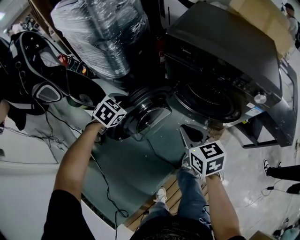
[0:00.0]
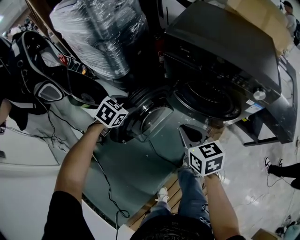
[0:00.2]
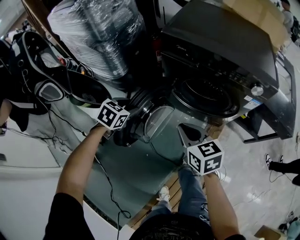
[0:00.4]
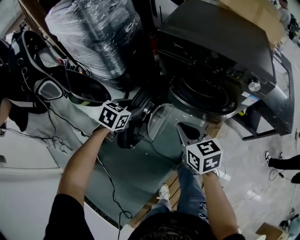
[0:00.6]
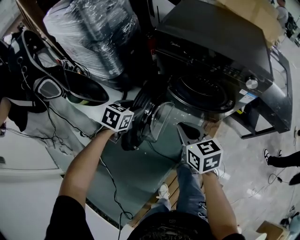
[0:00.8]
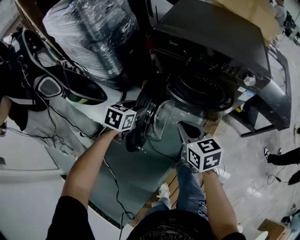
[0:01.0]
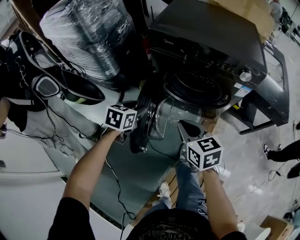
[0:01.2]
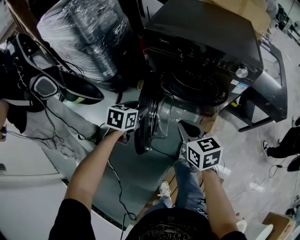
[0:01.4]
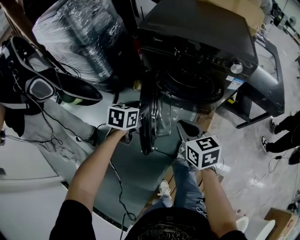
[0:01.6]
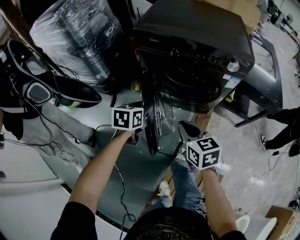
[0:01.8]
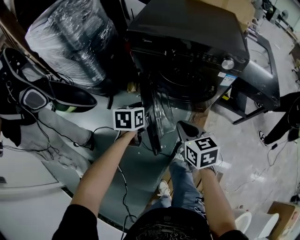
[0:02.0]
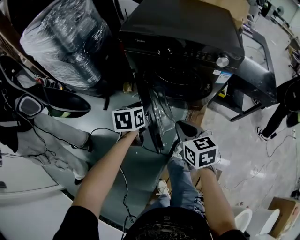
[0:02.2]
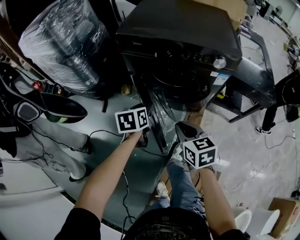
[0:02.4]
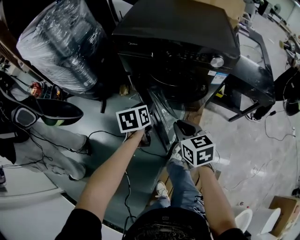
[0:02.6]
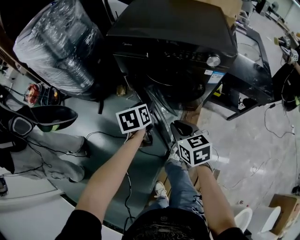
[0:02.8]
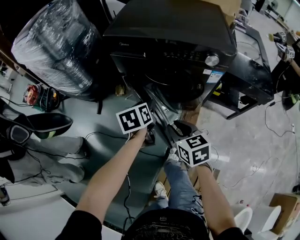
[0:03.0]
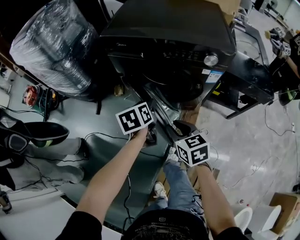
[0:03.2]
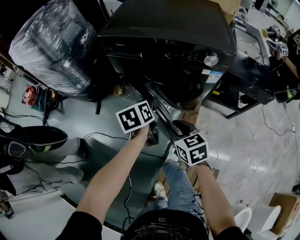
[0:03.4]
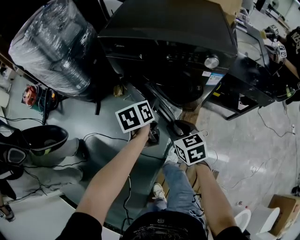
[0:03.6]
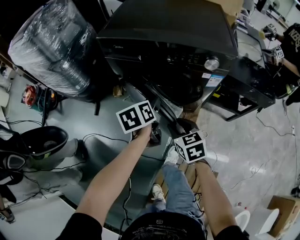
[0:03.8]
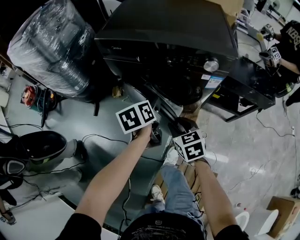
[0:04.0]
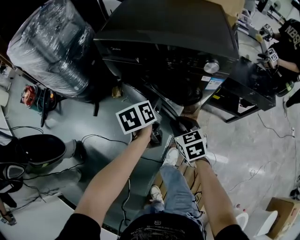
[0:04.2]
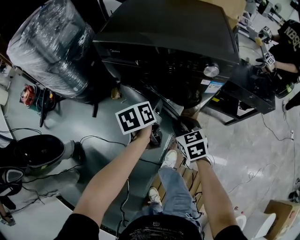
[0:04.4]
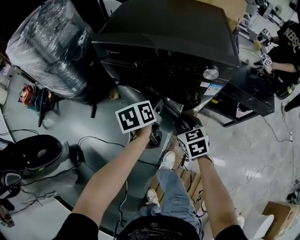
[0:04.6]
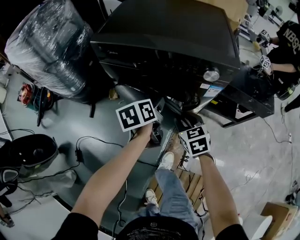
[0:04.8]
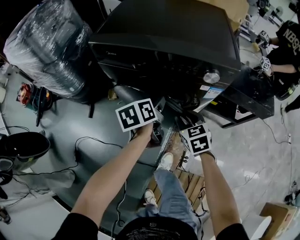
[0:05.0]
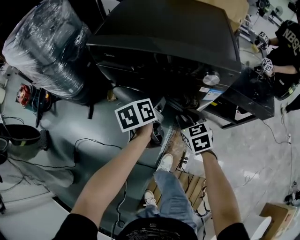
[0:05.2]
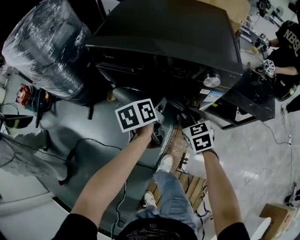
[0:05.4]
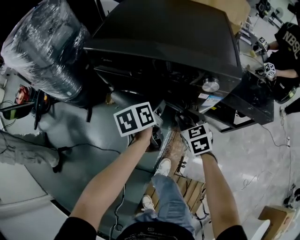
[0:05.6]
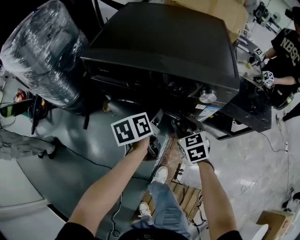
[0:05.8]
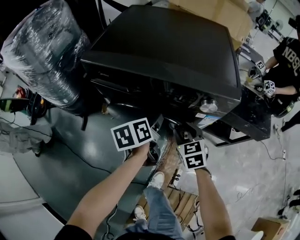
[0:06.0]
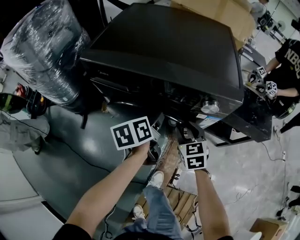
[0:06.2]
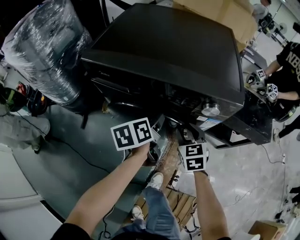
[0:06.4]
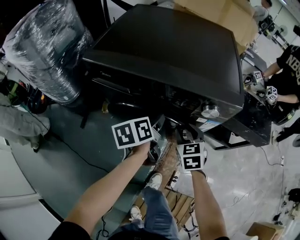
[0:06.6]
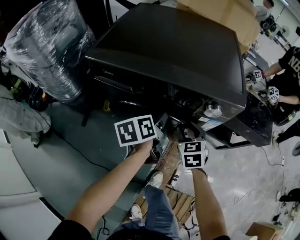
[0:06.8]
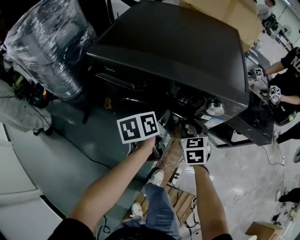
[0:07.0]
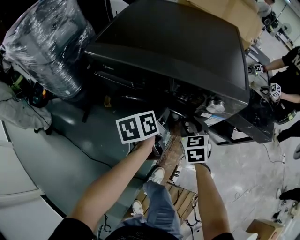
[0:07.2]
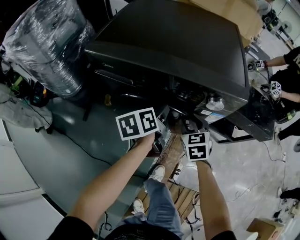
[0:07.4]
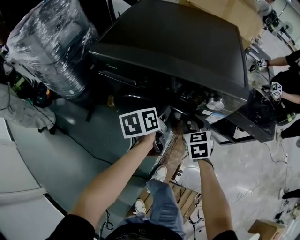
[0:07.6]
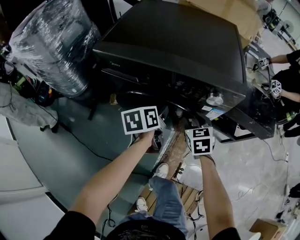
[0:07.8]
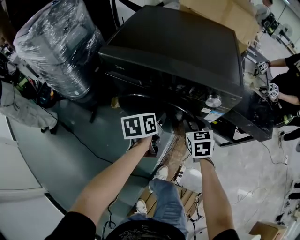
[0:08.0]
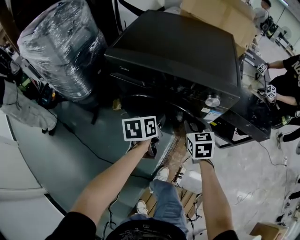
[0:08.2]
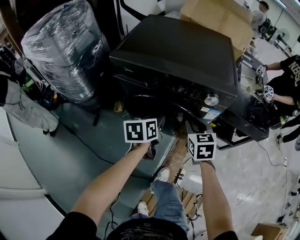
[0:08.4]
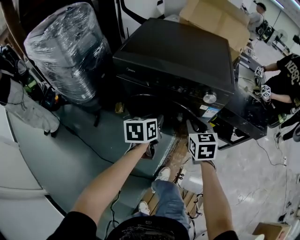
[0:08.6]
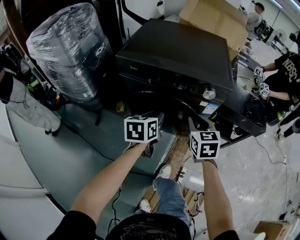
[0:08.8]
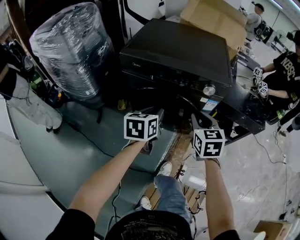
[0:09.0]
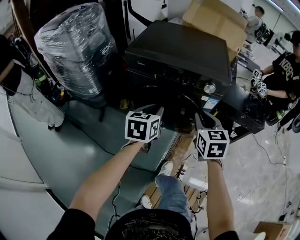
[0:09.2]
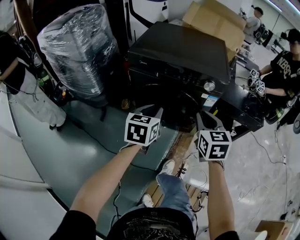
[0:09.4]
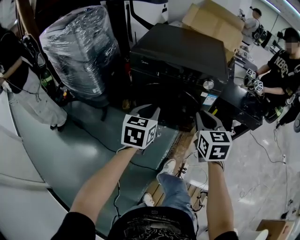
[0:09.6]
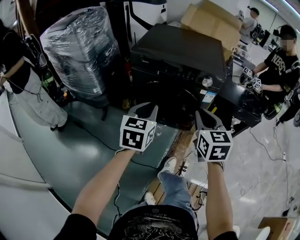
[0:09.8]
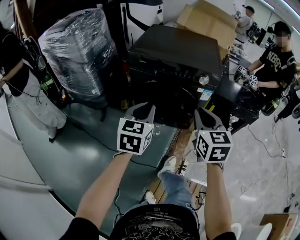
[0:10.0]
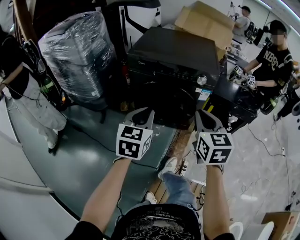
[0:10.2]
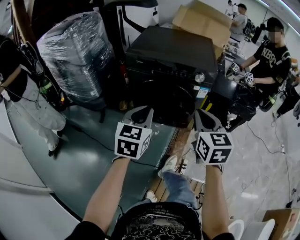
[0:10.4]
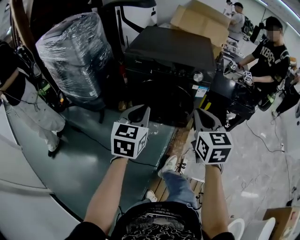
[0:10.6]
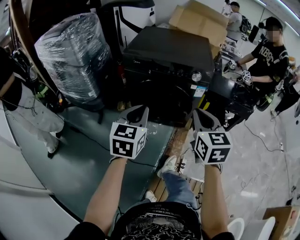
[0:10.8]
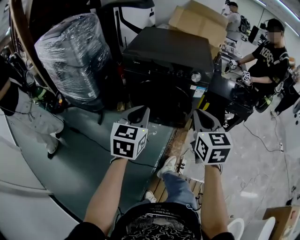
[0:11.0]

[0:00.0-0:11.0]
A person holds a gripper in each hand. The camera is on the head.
0:00.0 to 0:01.6: The left gripper heads to the right and backward, covering approximately 15 cm, and rotates about 30 degrees. Meanwhile the right gripper shifts about 10 cm backward and to the right.
0:01.6 to 0:03.2: The left gripper is displaced to the right by about 15 cm, and swivels about 30 degrees. The right gripper moves to the right and downward, roughly 10 cm.
0:03.2 to 0:04.8: The left gripper goes about 10 cm to the right and forward. The right gripper heads forward and to the right, covering some 15 cm.
0:04.8 to 0:06.2: The right gripper travels forward by roughly 10 cm; the left gripper is displaced forward by approximately 5 cm.
0:06.2 to 0:07.8: The grippers stay close to where they were, moving slightly.
0:07.8 to 0:09.4: The left gripper moves backward and upward, about 25 cm, and turns by about 40 degrees. The right gripper shifts some 30 cm upward and backward, and closes up.
0:09.4 to 0:11.0: Both grippers move backward and upward, approximately 15 cm.

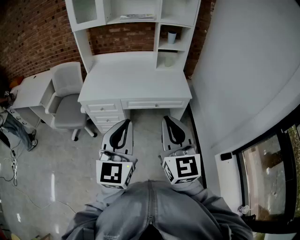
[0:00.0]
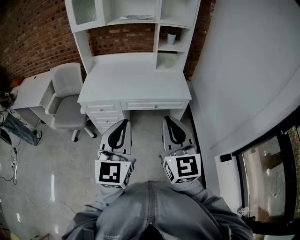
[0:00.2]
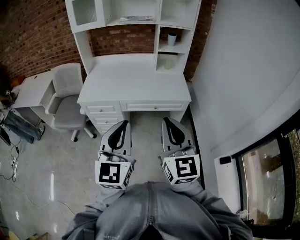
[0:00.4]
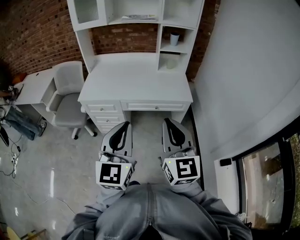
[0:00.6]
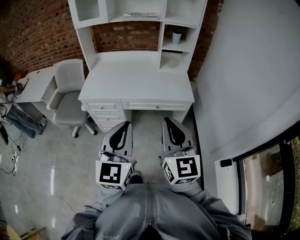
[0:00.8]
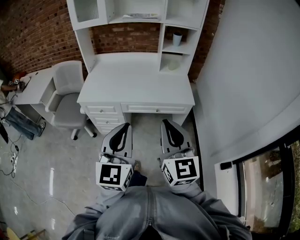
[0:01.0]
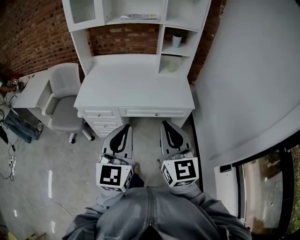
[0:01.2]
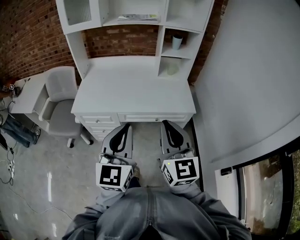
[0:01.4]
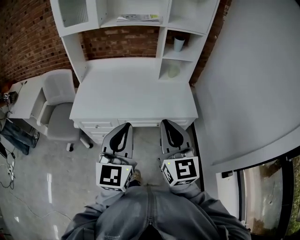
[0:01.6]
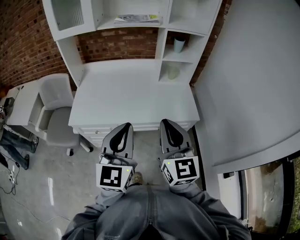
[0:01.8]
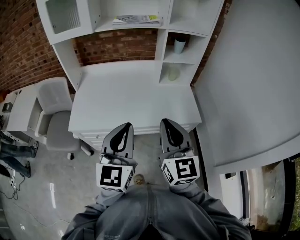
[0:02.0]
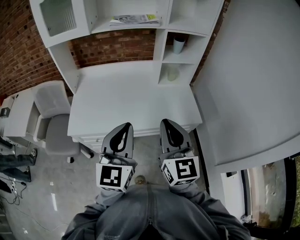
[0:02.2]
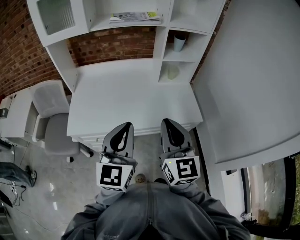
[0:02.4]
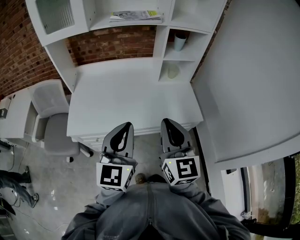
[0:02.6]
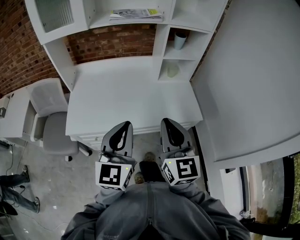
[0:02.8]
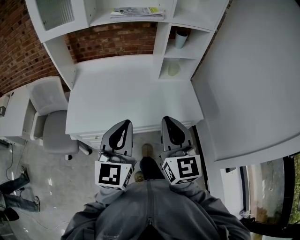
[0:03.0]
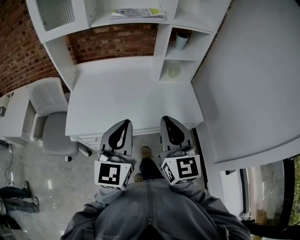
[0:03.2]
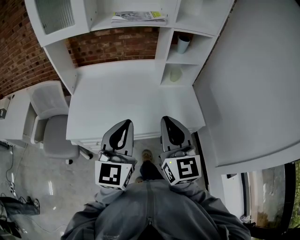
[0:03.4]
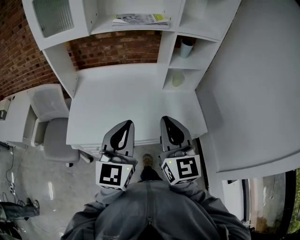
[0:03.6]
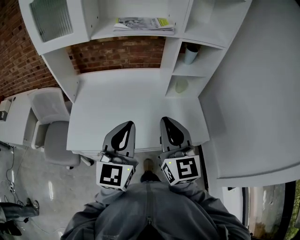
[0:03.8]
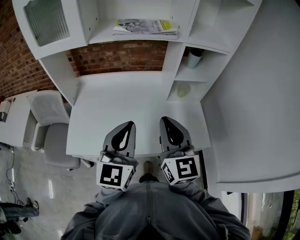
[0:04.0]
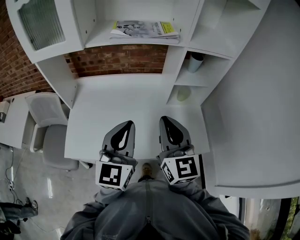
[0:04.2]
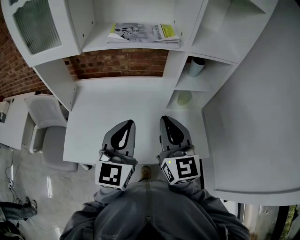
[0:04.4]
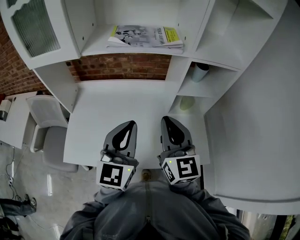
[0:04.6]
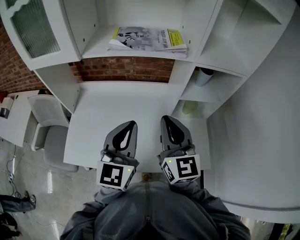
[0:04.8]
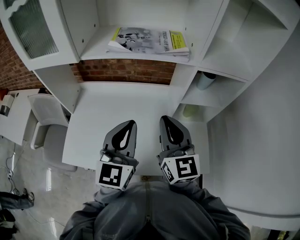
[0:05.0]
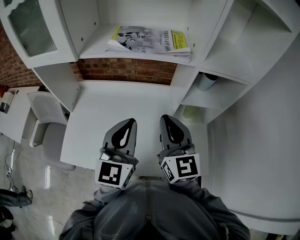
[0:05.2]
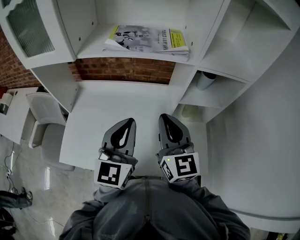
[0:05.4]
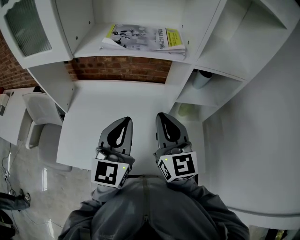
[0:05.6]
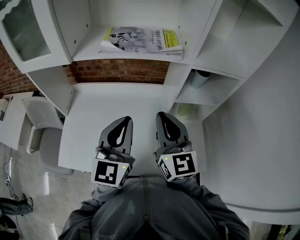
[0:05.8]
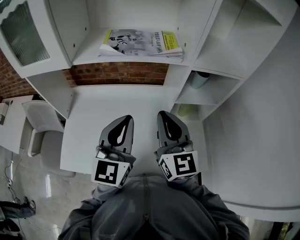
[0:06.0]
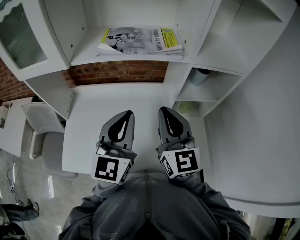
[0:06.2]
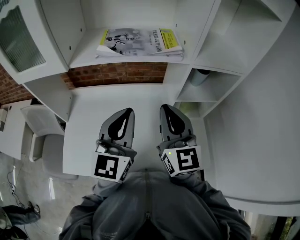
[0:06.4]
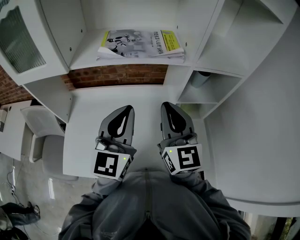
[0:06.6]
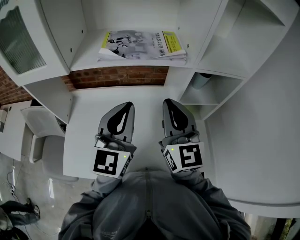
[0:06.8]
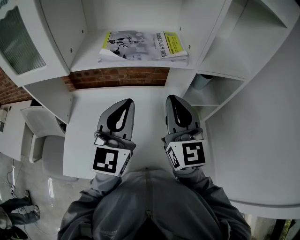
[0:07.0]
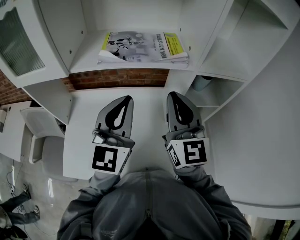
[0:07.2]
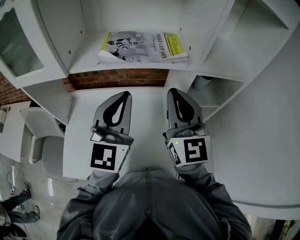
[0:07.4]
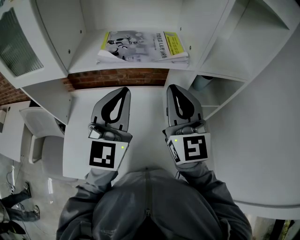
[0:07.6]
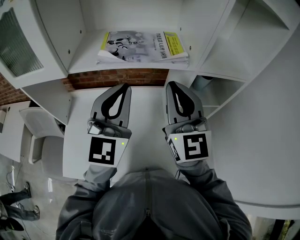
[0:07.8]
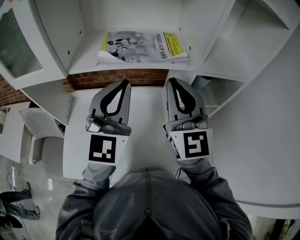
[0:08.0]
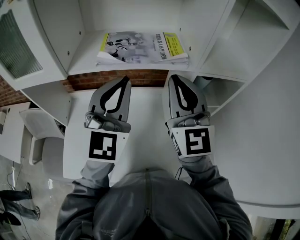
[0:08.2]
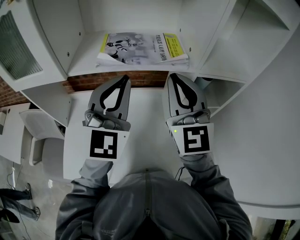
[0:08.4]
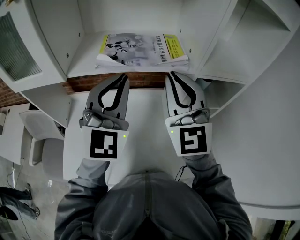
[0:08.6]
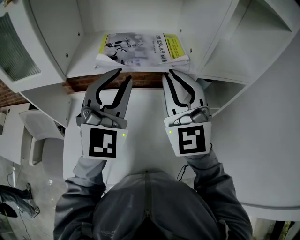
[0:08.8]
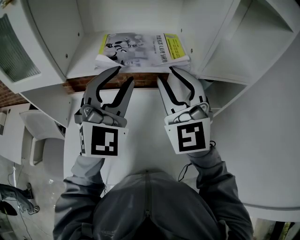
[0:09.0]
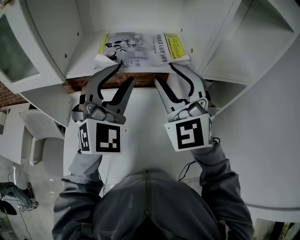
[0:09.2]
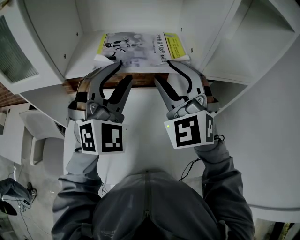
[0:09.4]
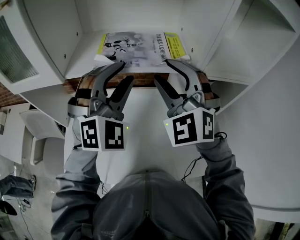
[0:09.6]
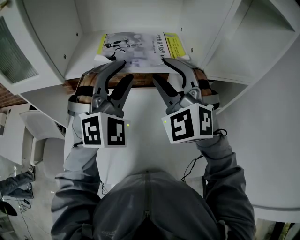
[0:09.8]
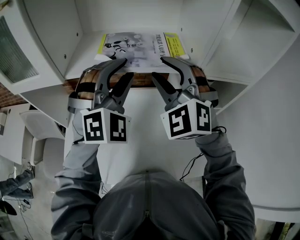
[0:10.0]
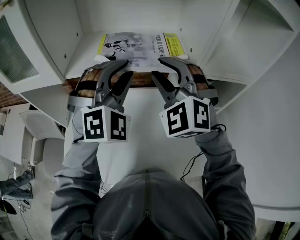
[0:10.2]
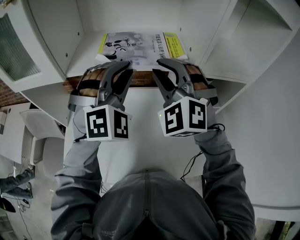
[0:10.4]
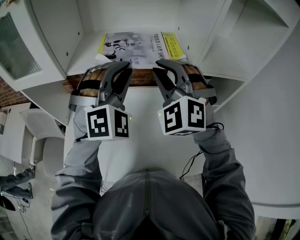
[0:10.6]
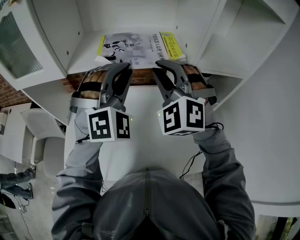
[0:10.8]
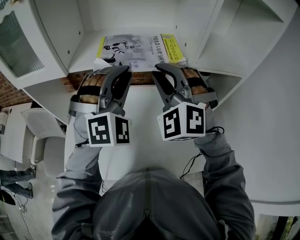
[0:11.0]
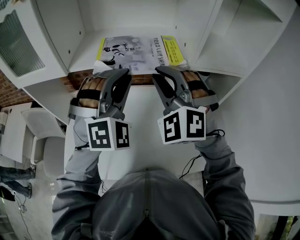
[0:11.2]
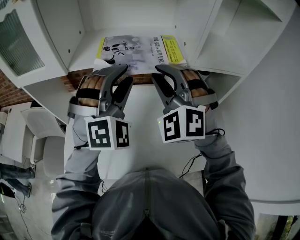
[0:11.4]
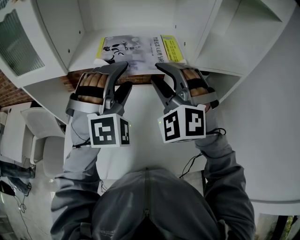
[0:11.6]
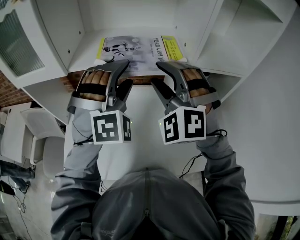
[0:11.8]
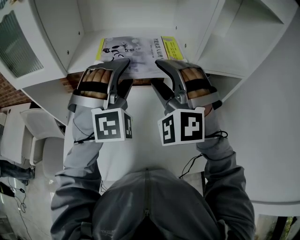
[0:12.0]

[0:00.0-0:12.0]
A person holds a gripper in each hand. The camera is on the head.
0:00.0 to 0:01.6: The grippers both shift forward by approximately 20 cm.
0:01.6 to 0:03.0: Both grippers travel together forward and to the left, roughly 15 cm.
0:03.0 to 0:04.4: Both grippers travel together forward, about 25 cm.
0:04.4 to 0:06.0: Both grippers travel together forward, roughly 10 cm.
0:06.0 to 0:07.6: The left gripper moves forward and upward, about 10 cm. The right gripper moves upward and forward, about 10 cm.
0:07.6 to 0:09.0: The left gripper shifts by some 5 cm, rotates some 30 degrees, and opens up, while the right gripper turns by roughly 30 degrees, and opens up.
0:09.0 to 0:10.4: The left gripper changes its angle by approximately 30 degrees, while the right gripper turns by some 30 degrees.
0:10.4 to 0:12.0: The left gripper opens up, while the right gripper opens.

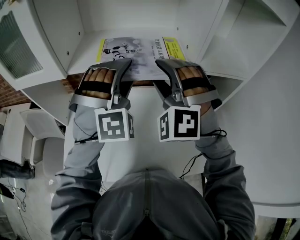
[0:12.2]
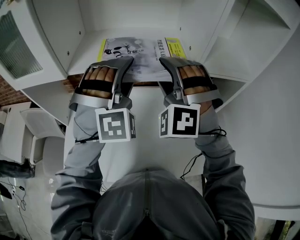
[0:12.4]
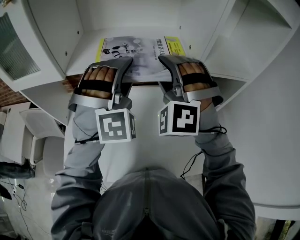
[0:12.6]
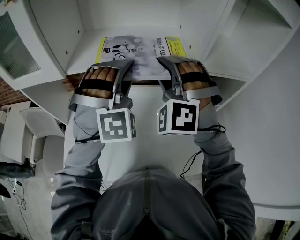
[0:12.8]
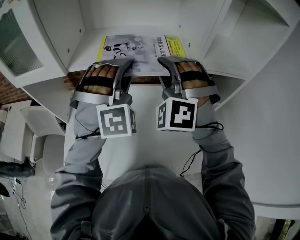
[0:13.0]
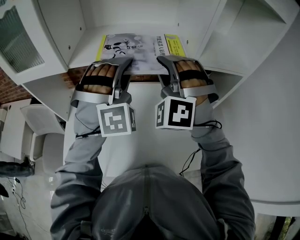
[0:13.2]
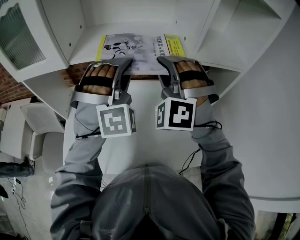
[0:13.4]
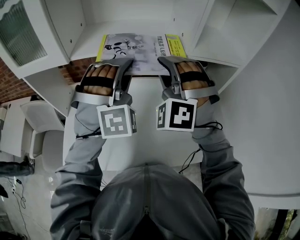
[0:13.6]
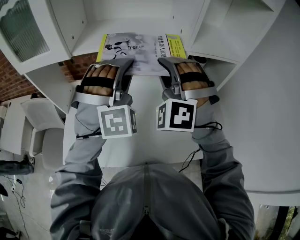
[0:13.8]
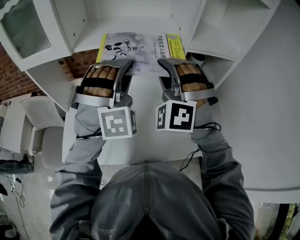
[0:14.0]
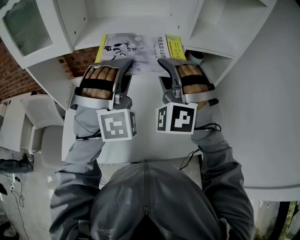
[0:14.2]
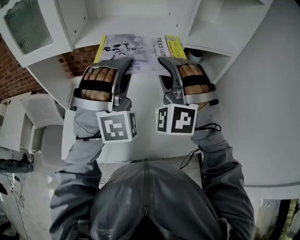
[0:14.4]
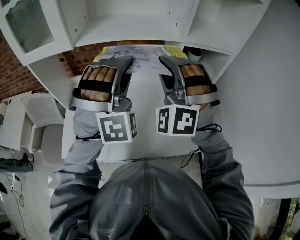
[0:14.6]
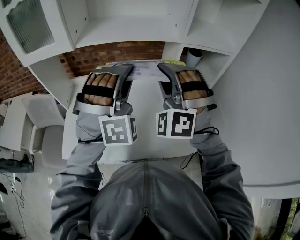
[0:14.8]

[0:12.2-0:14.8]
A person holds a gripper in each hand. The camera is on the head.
0:12.2 to 0:13.4: The left gripper closes up. Meanwhile the right gripper closes its fingers.
0:13.4 to 0:14.8: Both grippers travel together backward, about 5 cm.
